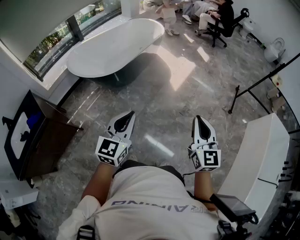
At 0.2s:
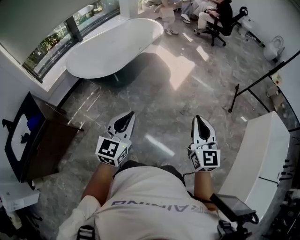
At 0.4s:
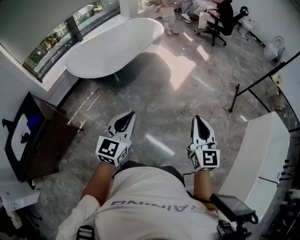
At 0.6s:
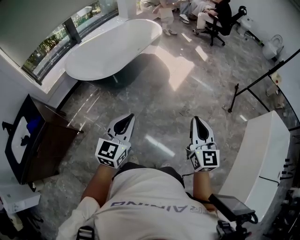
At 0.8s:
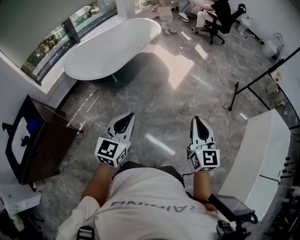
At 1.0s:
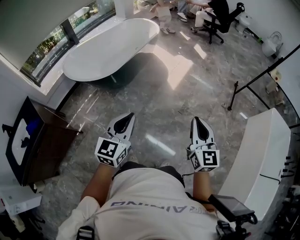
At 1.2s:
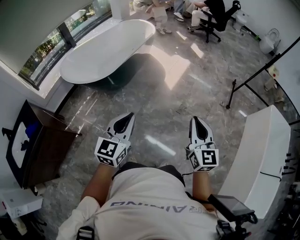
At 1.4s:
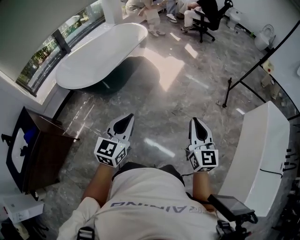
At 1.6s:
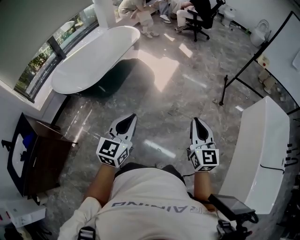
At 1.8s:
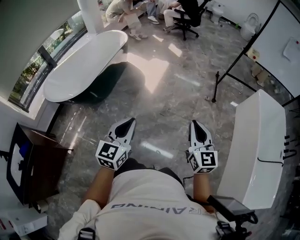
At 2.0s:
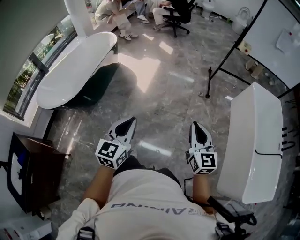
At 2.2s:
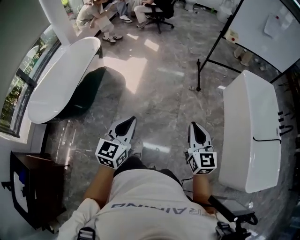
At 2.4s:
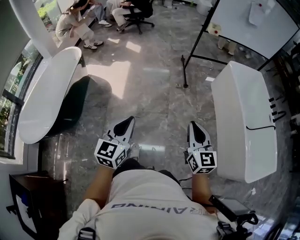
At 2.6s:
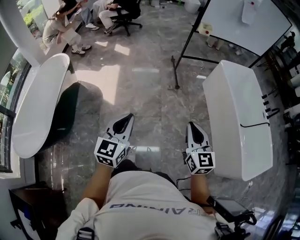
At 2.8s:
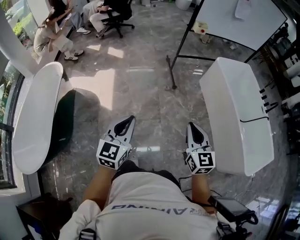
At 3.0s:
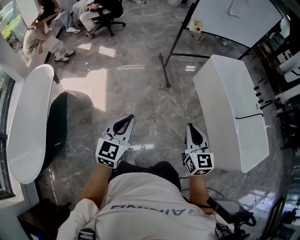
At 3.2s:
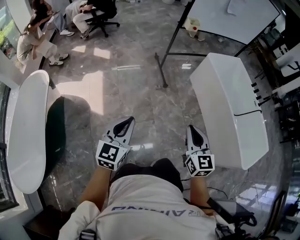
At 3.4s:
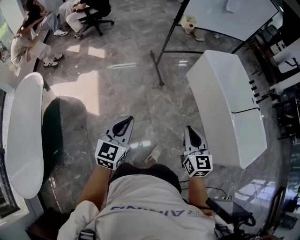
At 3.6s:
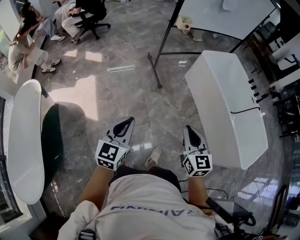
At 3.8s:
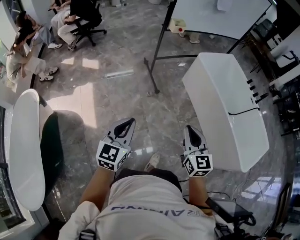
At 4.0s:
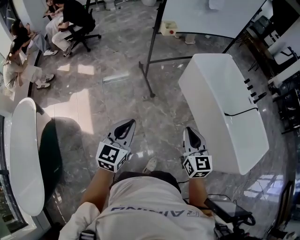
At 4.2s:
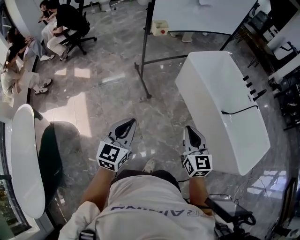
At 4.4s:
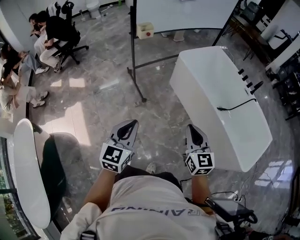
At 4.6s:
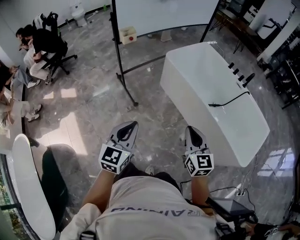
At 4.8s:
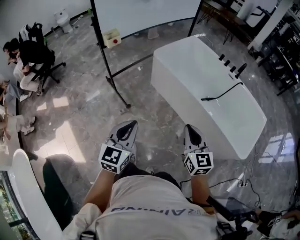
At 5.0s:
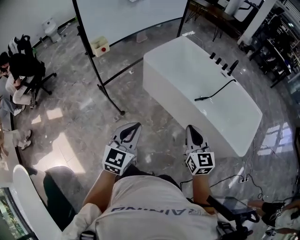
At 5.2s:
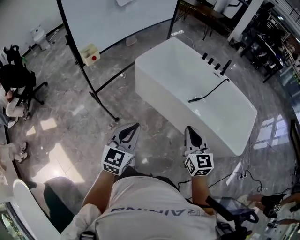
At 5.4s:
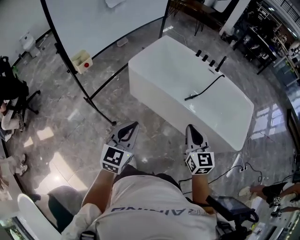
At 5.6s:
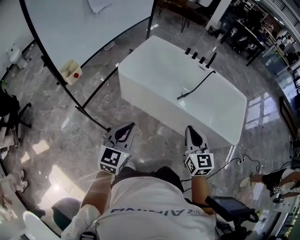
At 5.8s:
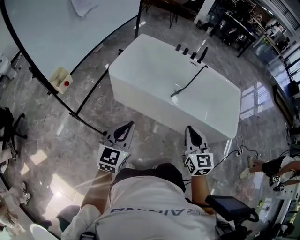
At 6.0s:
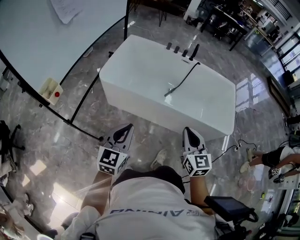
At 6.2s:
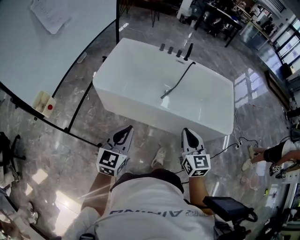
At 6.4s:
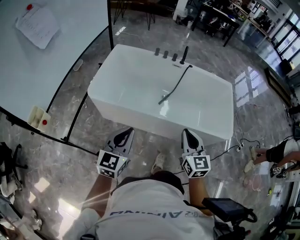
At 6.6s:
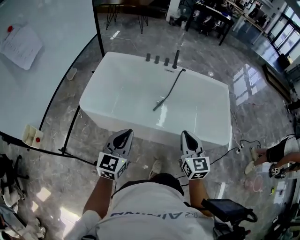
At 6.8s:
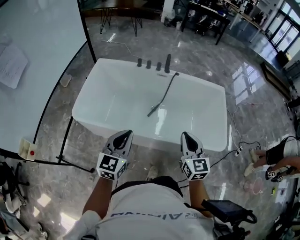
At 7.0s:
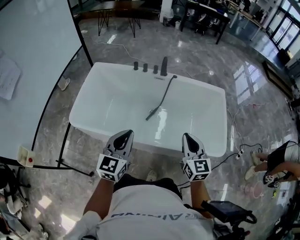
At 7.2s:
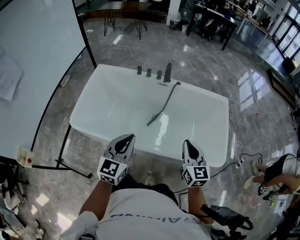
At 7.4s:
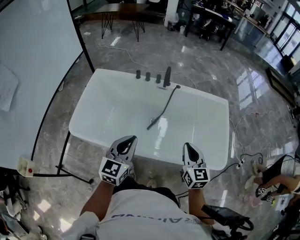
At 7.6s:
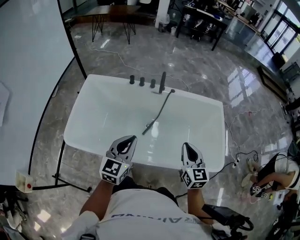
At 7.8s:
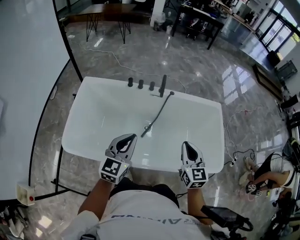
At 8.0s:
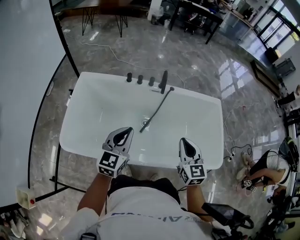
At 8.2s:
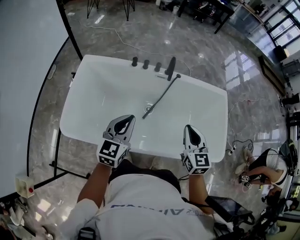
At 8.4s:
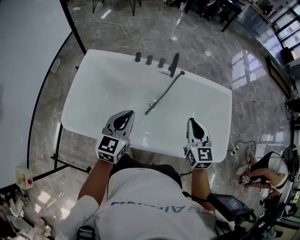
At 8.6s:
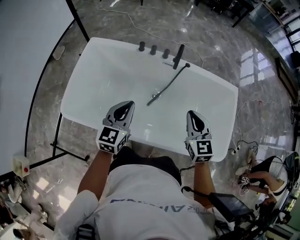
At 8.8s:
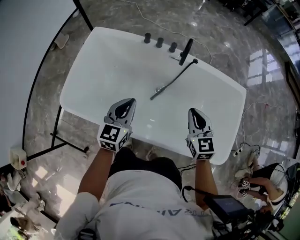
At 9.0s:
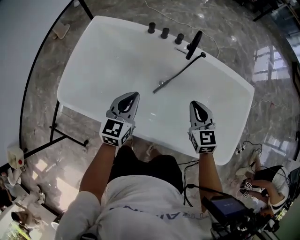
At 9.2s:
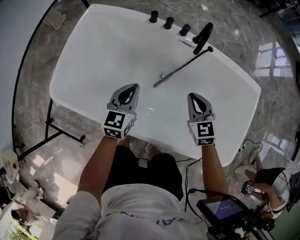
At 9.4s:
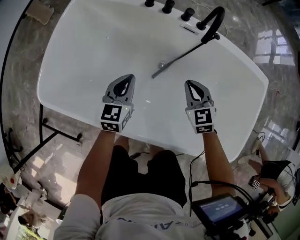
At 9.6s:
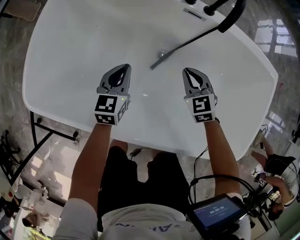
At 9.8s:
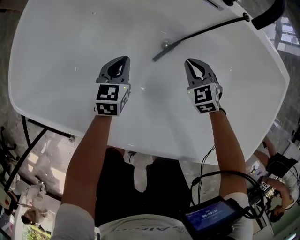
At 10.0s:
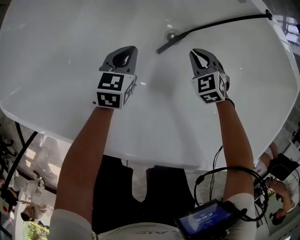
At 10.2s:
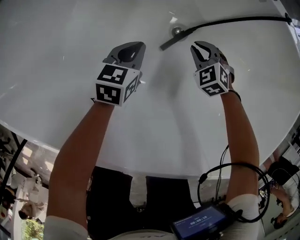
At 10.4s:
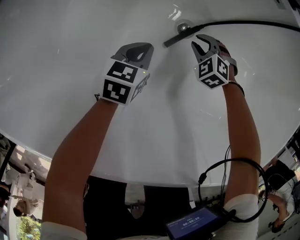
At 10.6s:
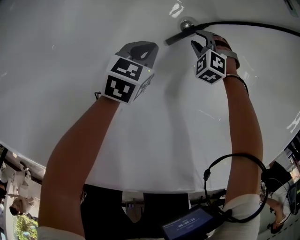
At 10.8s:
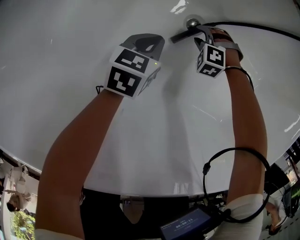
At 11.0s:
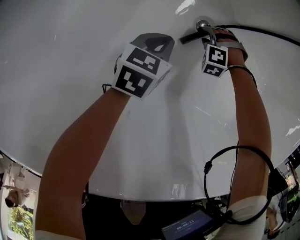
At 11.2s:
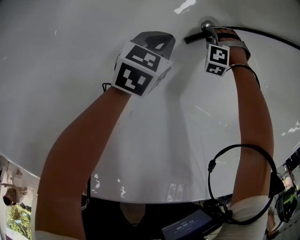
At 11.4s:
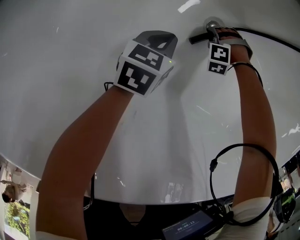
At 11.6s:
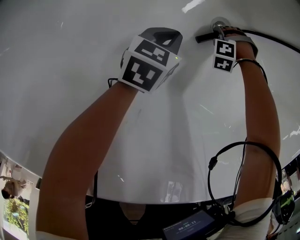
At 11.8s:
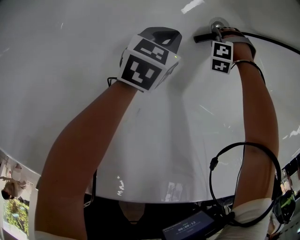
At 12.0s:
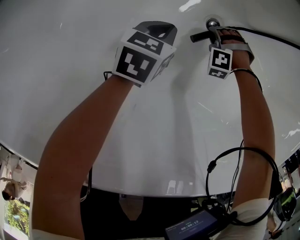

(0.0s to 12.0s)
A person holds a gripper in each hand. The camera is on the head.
0.0s - 1.6s: Both grippers move to the right, about 15 cm.
1.6s - 3.0s: The right gripper moves some 25 cm, and rotates roughly 40 degrees. The left gripper shifts by some 40 cm, and turns by some 40 degrees.
3.0s - 4.4s: Both grippers travel together forward and to the right, roughly 35 cm.
4.4s - 6.0s: The right gripper changes place by approximately 25 cm, and rotates some 40 degrees. The left gripper shifts by about 40 cm, and turns by some 40 degrees.
6.0s - 7.6s: The two grippers travel together, forward and to the right, roughly 50 cm.
7.6s - 9.0s: Both grippers move forward and downward, approximately 25 cm. The right gripper swivels about 20 degrees.
9.0s - 10.4s: Both grippers move downward, about 60 cm. The left gripper turns by about 30 degrees, while the right gripper angles its fingers downward, by some 30 degrees.
10.4s - 12.0s: The left gripper shifts about 5 cm downward, while the right gripper goes some 15 cm downward, and twists approximately 50 degrees counterclockwise, seen from behind.

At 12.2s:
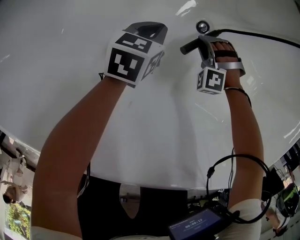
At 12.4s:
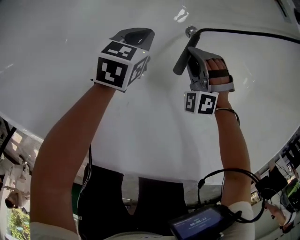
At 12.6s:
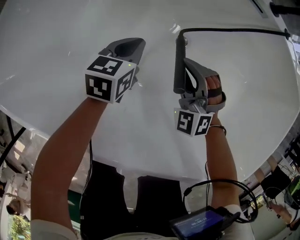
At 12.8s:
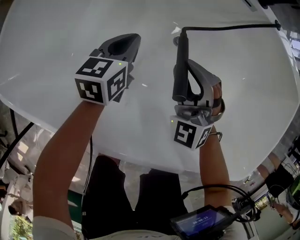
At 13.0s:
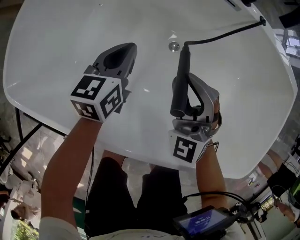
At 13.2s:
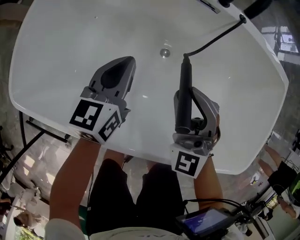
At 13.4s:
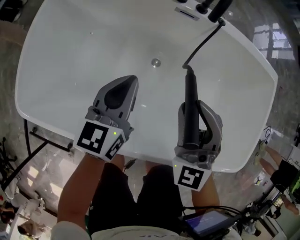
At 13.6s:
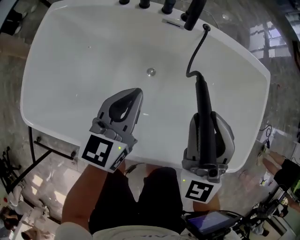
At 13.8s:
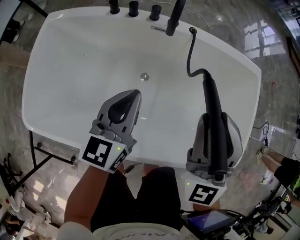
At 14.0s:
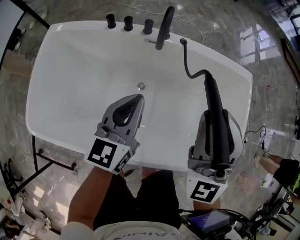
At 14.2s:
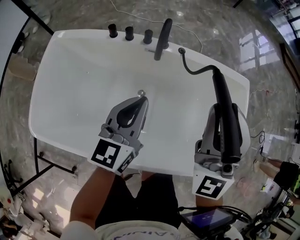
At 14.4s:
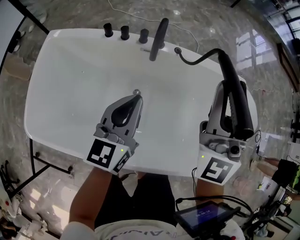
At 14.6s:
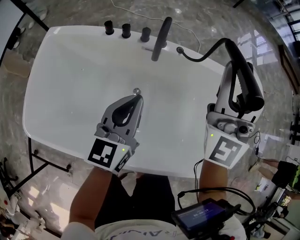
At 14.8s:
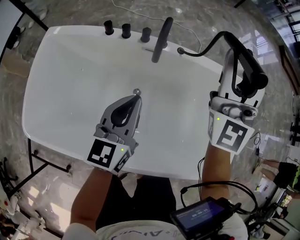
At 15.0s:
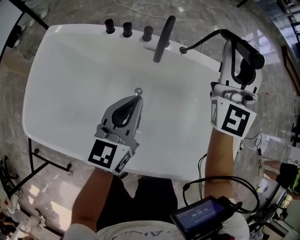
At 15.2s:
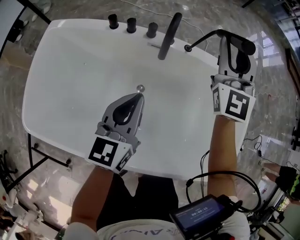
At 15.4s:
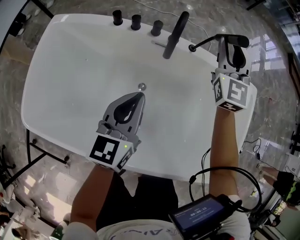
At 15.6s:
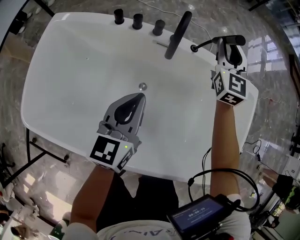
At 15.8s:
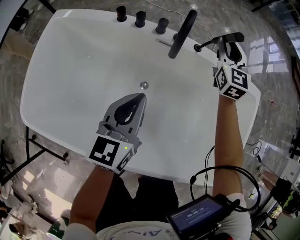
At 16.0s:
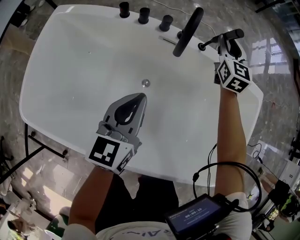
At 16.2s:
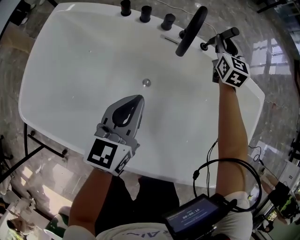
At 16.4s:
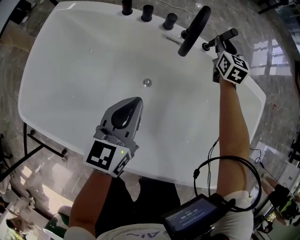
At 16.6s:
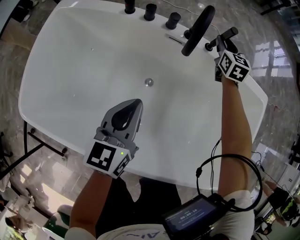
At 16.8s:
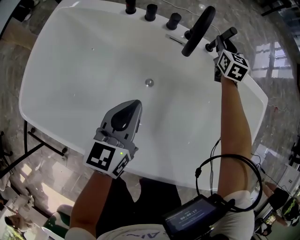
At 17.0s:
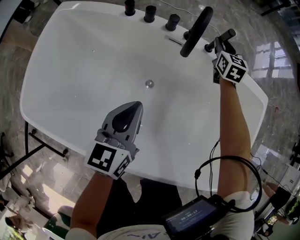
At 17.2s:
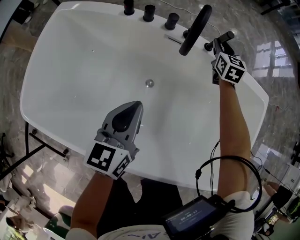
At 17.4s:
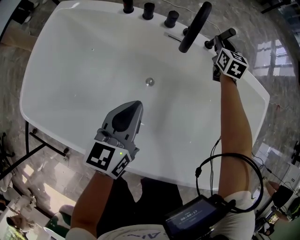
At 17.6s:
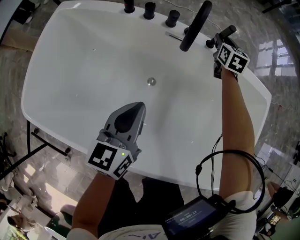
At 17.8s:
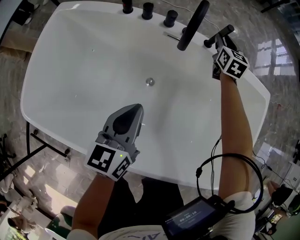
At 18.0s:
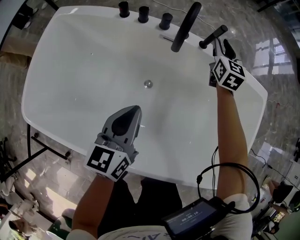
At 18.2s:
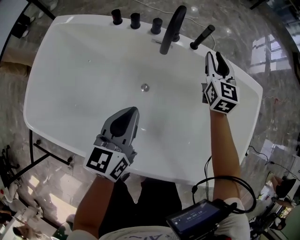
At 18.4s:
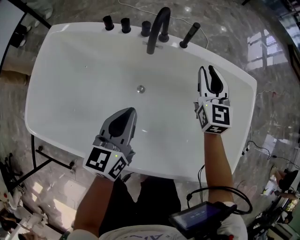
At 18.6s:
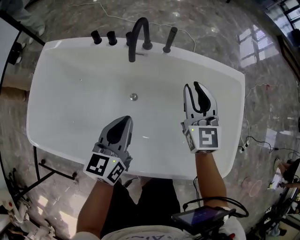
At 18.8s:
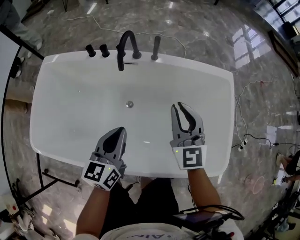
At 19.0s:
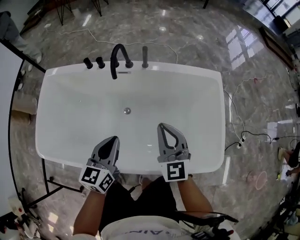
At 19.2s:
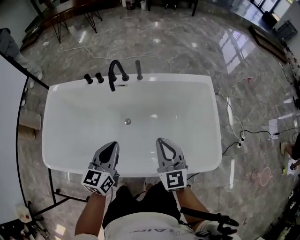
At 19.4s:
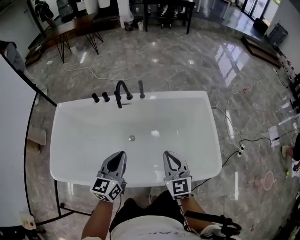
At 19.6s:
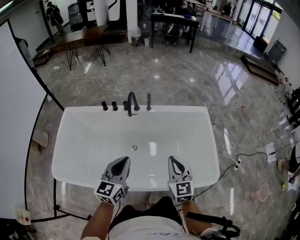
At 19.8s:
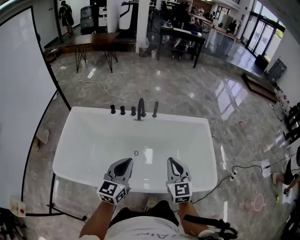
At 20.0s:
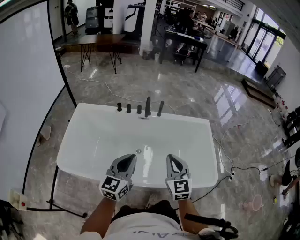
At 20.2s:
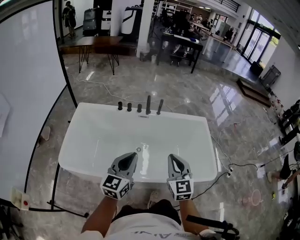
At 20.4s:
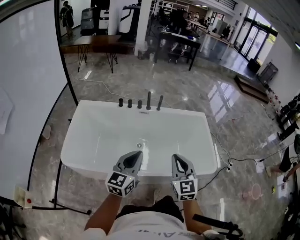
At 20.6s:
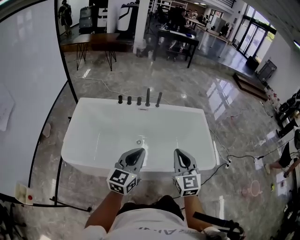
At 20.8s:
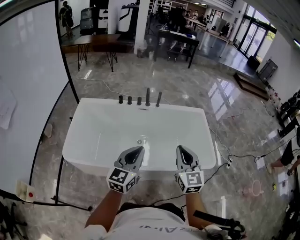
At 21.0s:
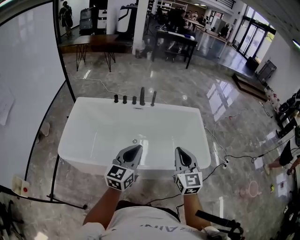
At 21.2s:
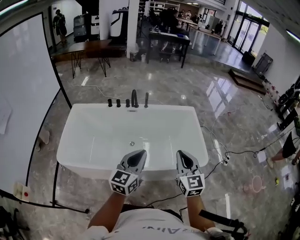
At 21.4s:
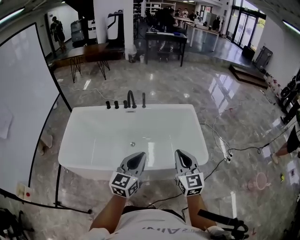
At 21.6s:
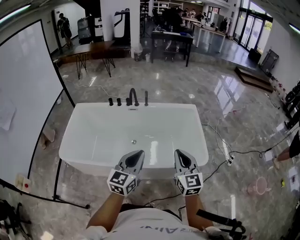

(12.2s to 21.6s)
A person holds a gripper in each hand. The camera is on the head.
12.2s - 13.8s: The two grippers go roughly 60 cm upward. The left gripper angles its fingers upward, by some 30 degrees. Meanwhile the right gripper points its fingers approximately 70 degrees further upward.
13.8s - 15.4s: The right gripper is displaced forward by approximately 30 cm. Meanwhile the left gripper heads forward, covering about 5 cm, and reaches approximately 10 cm upward, then returns.
15.4s - 17.0s: The right gripper travels downward and forward by approximately 25 cm, and rotates roughly 30 degrees. Meanwhile the left gripper goes roughly 5 cm downward.
17.0s - 18.4s: The right gripper shifts roughly 25 cm backward and upward. Meanwhile the left gripper goes roughly 5 cm to the right.
18.4s - 20.0s: The right gripper moves backward and upward, approximately 50 cm, and closes its fingers. The left gripper goes about 40 cm upward and backward, and swivels about 20 degrees.
20.0s - 21.6s: The two grippers go roughly 25 cm to the right and backward.

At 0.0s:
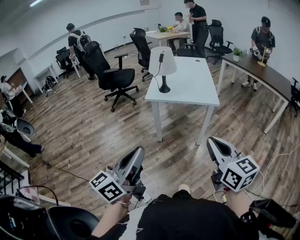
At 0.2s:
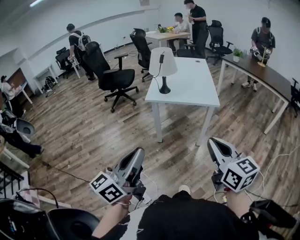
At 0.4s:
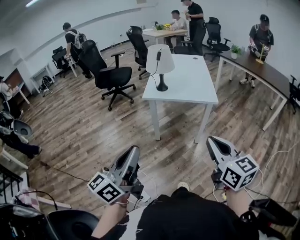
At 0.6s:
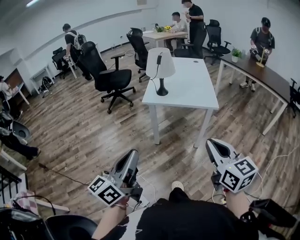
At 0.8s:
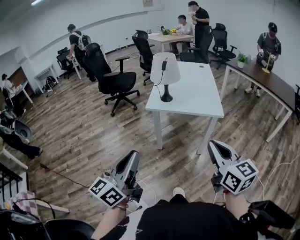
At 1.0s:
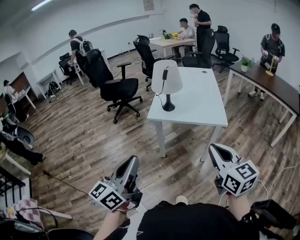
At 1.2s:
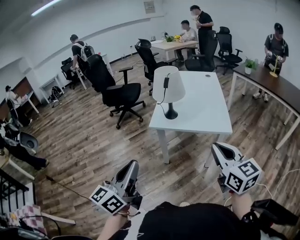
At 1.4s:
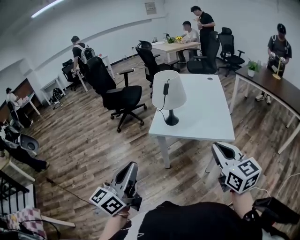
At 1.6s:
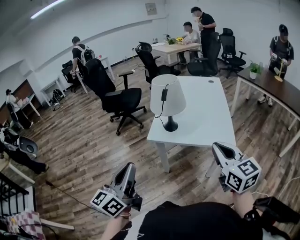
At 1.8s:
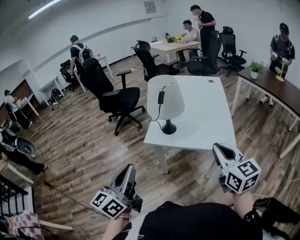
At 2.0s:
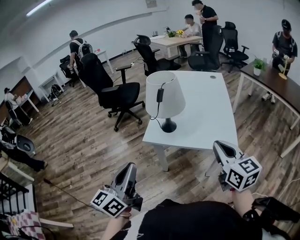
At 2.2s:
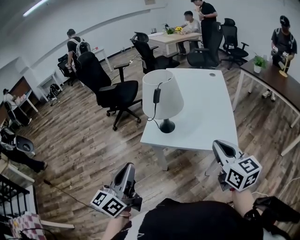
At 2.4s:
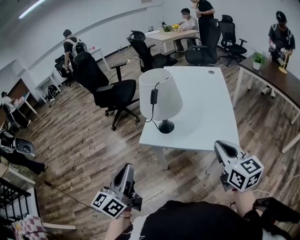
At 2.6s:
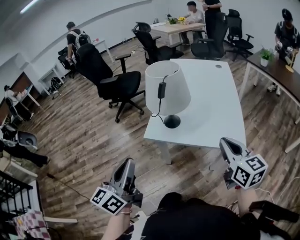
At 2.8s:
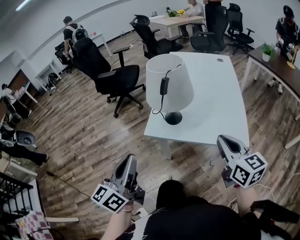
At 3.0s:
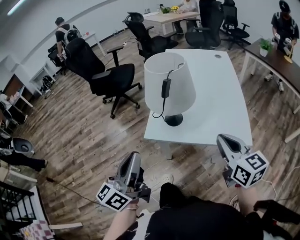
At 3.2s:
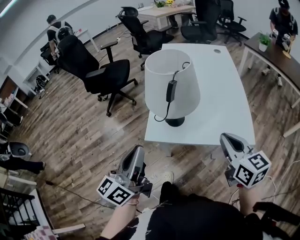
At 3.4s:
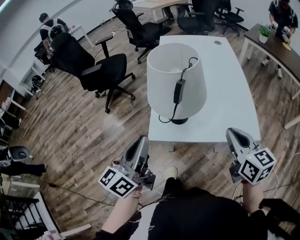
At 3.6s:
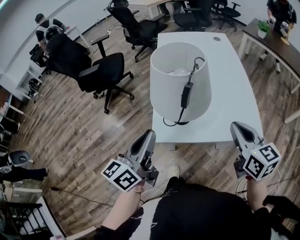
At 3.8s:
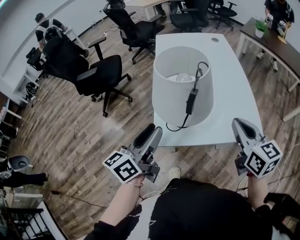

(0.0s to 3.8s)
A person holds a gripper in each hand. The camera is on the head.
0.0s - 1.2s: Both grippers move forward, approximately 20 cm.
1.2s - 2.6s: The two grippers go some 20 cm forward.
2.6s - 3.8s: The left gripper moves forward, about 25 cm, swivels roughly 30 degrees, and opens up. The right gripper heads forward and to the left, covering about 15 cm.
